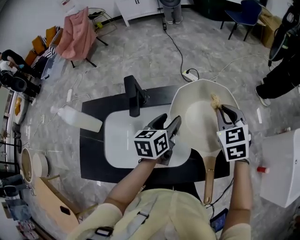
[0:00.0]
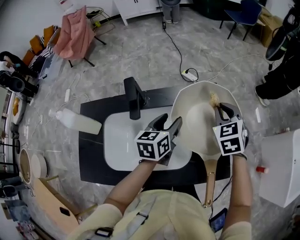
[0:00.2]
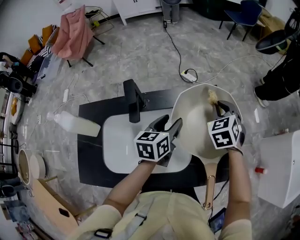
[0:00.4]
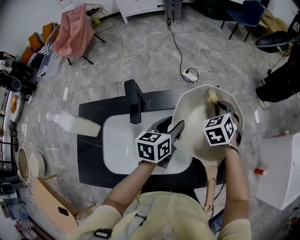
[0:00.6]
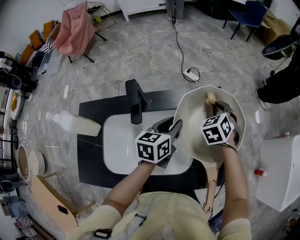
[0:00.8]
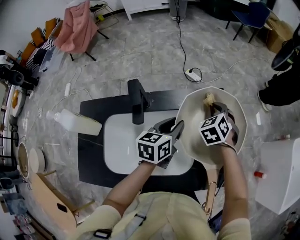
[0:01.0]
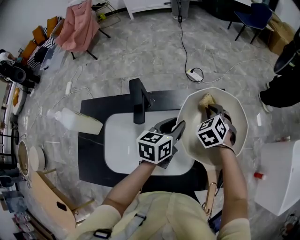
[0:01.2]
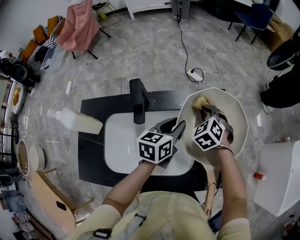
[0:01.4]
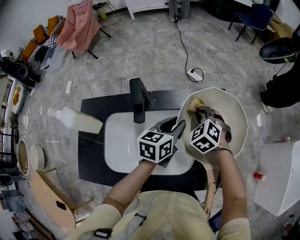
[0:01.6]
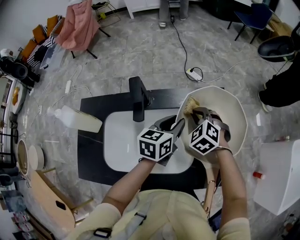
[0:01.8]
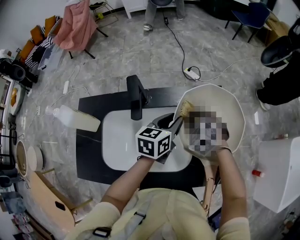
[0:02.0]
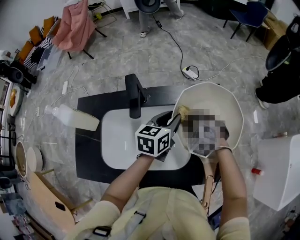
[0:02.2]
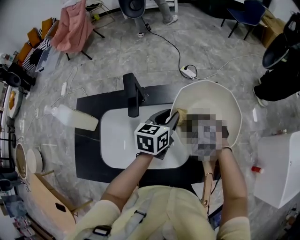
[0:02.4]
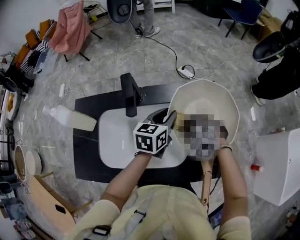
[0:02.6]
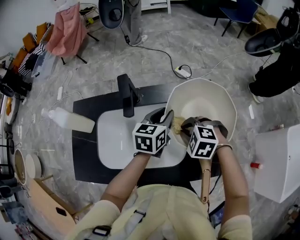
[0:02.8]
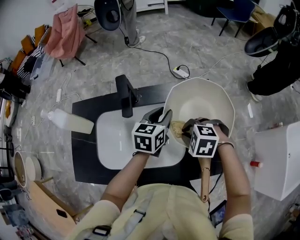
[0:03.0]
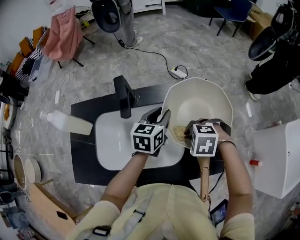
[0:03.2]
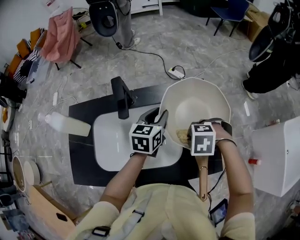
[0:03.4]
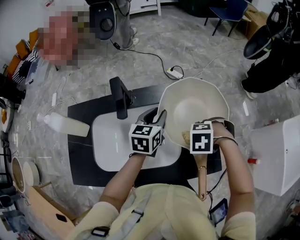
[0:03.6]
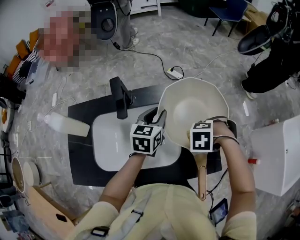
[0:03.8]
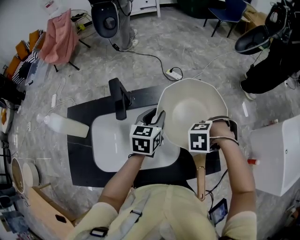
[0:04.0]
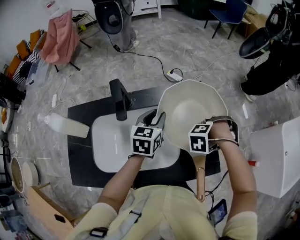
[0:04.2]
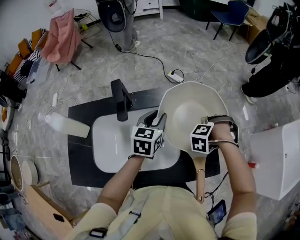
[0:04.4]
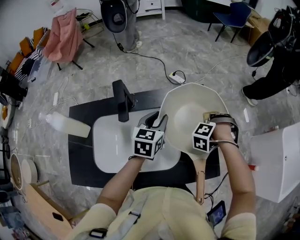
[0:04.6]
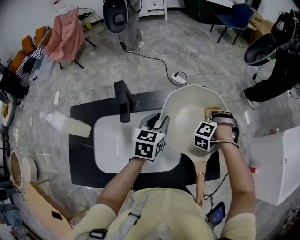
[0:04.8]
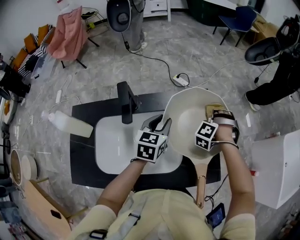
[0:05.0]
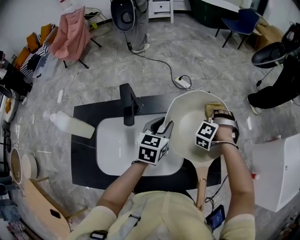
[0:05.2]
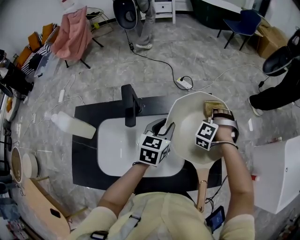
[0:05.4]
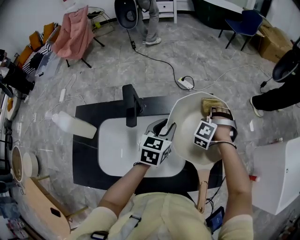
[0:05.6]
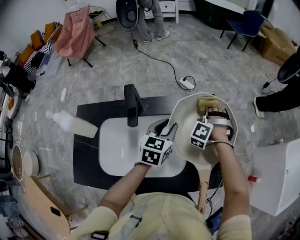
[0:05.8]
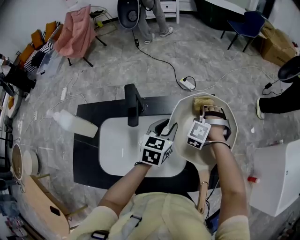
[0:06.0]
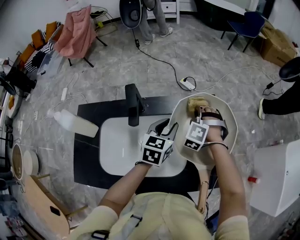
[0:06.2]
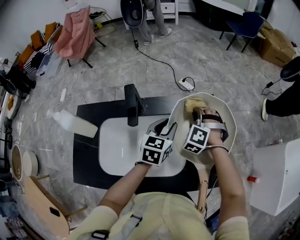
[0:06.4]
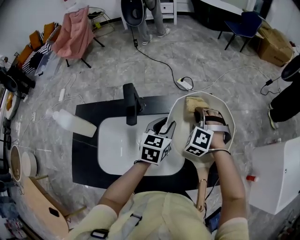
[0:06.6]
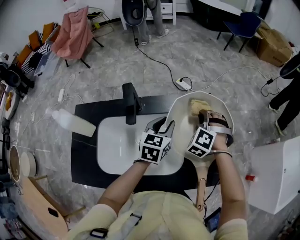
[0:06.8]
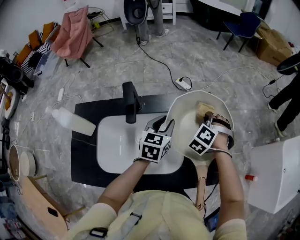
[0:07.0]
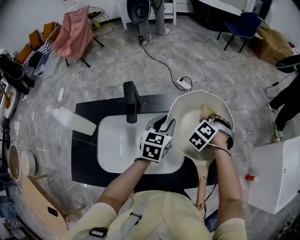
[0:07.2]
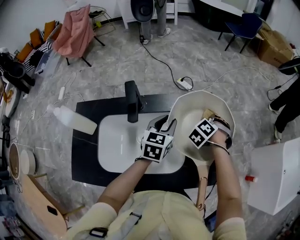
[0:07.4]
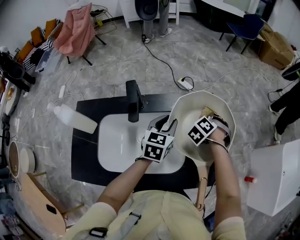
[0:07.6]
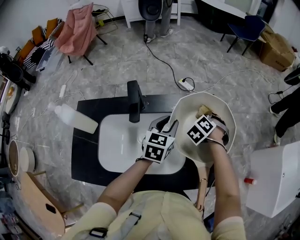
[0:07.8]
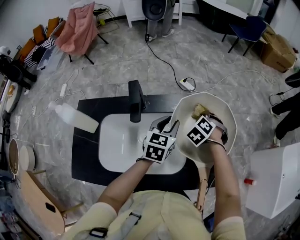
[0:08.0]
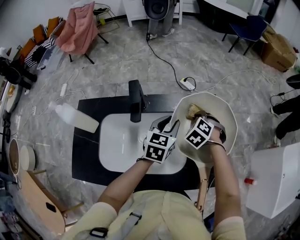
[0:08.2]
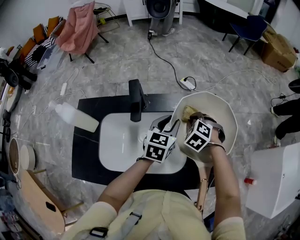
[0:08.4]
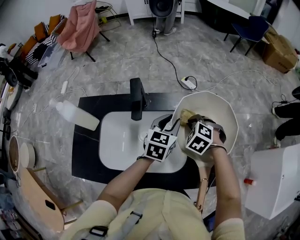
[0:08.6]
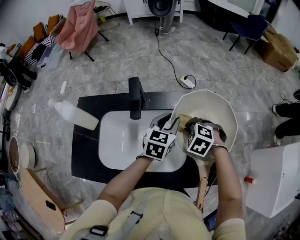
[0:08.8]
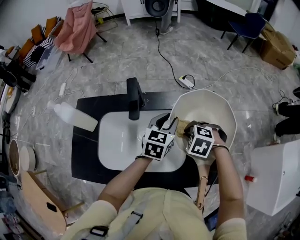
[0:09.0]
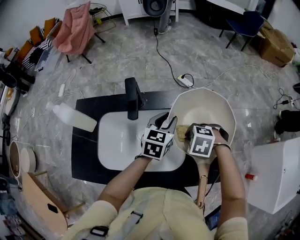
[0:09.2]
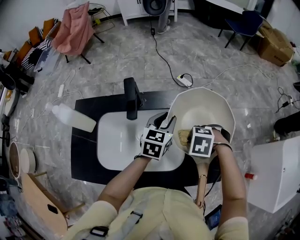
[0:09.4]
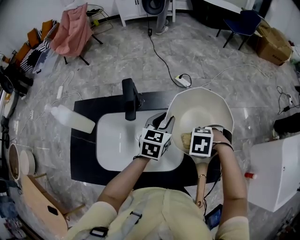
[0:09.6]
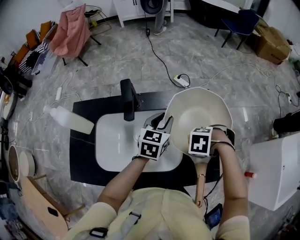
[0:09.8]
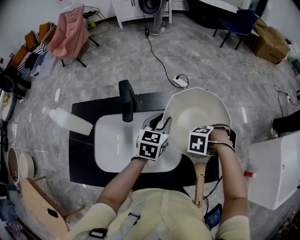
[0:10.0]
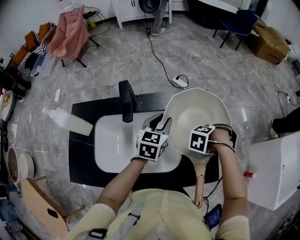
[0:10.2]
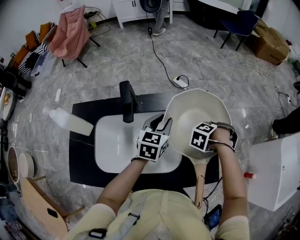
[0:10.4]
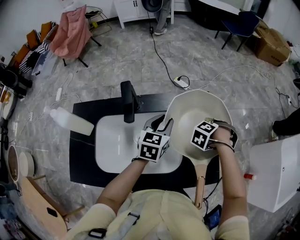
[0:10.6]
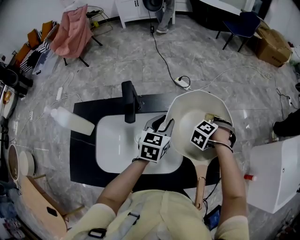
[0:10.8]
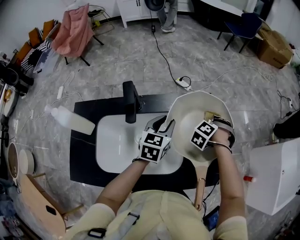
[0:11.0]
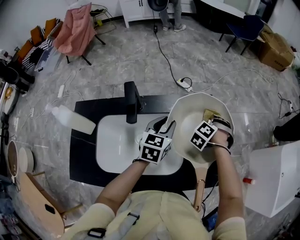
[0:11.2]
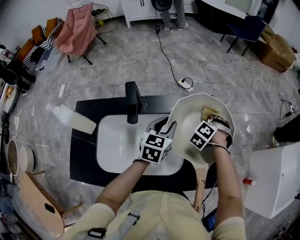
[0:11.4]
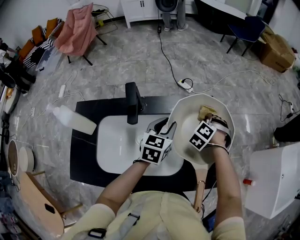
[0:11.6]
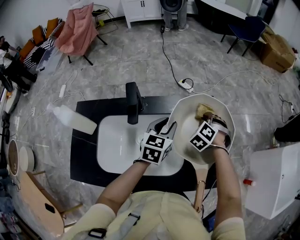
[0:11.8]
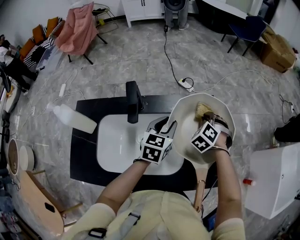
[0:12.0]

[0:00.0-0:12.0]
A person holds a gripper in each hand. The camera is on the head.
0:00.0 to 0:01.6: The right gripper travels to the left and downward by some 15 cm, and swivels approximately 30 degrees. Meanwhile the left gripper closes.
0:01.6 to 0:03.0: The right gripper shifts by approximately 15 cm, and rotates approximately 40 degrees.
0:03.0 to 0:04.4: The right gripper shifts by about 15 cm, and rotates some 50 degrees.
0:04.4 to 0:06.0: The right gripper shifts by approximately 15 cm, and rotates some 40 degrees.
0:06.0 to 0:07.6: The right gripper shifts about 5 cm to the right, and swivels about 30 degrees.
0:07.6 to 0:09.0: The right gripper changes place by about 15 cm, and changes its angle by roughly 40 degrees.
0:09.0 to 0:10.4: The right gripper shifts by about 15 cm, and changes its angle by some 40 degrees.
0:10.4 to 0:12.0: The right gripper changes place by some 10 cm, and turns by some 40 degrees.

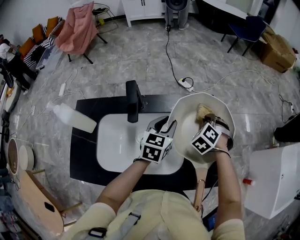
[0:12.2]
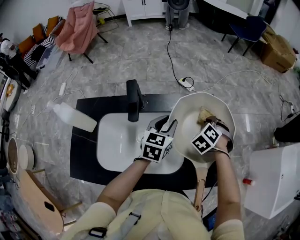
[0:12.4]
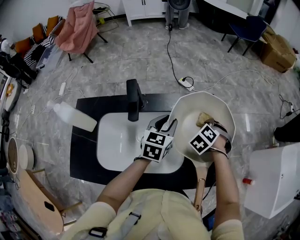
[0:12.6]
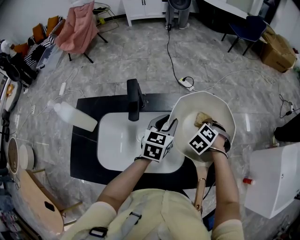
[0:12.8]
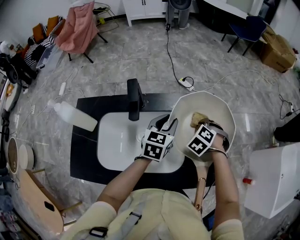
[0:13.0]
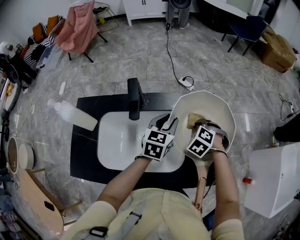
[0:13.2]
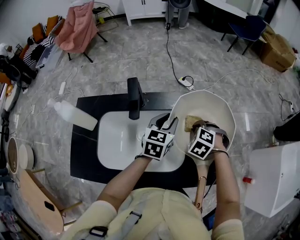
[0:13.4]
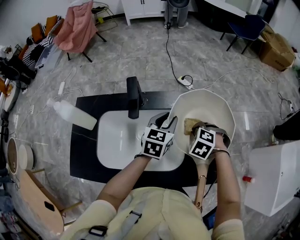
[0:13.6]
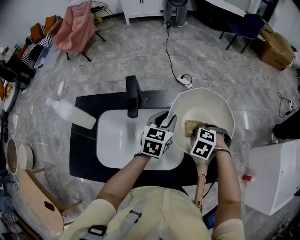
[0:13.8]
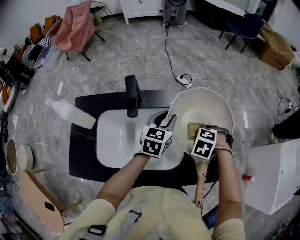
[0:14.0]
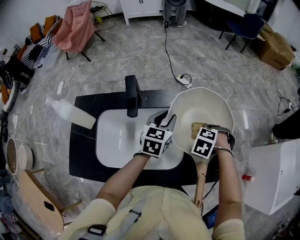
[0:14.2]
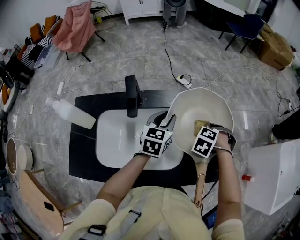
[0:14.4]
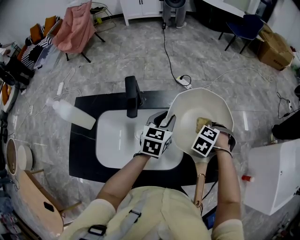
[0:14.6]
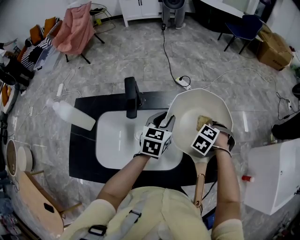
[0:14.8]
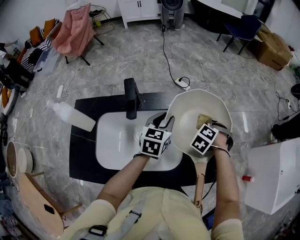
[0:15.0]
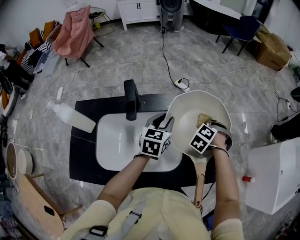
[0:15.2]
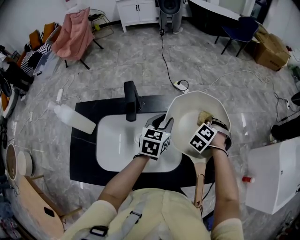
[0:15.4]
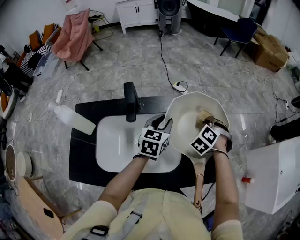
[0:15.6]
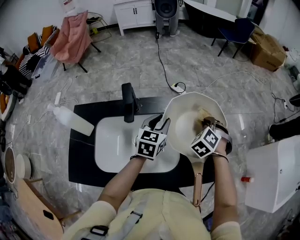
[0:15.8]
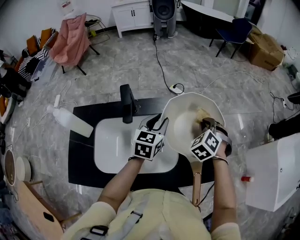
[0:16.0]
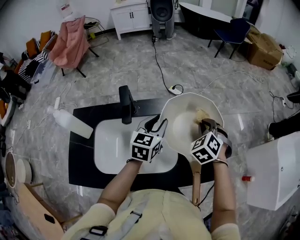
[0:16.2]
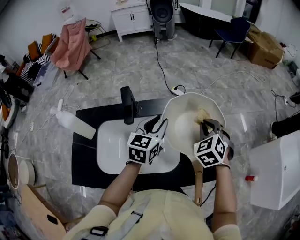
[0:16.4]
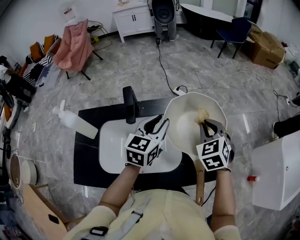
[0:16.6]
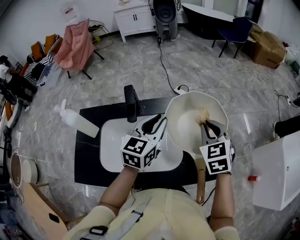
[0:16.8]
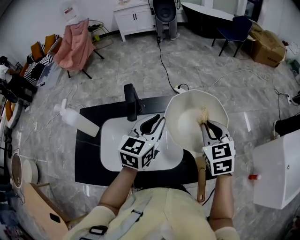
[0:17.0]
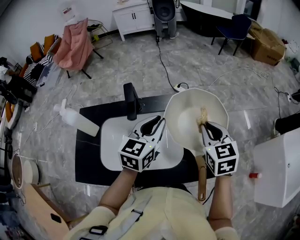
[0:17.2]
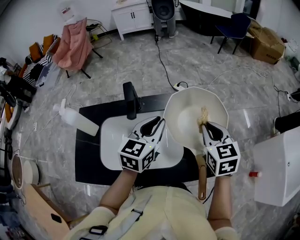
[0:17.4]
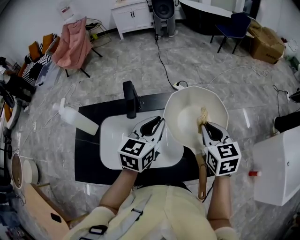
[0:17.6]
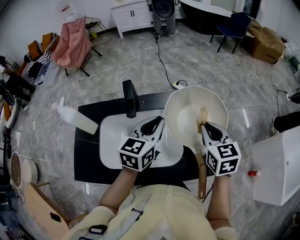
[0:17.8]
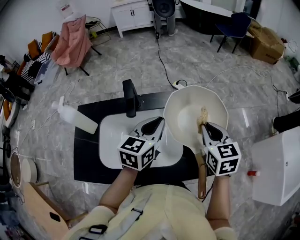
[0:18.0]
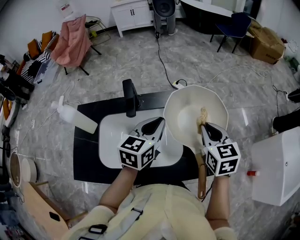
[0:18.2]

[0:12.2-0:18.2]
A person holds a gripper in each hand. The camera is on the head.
0:12.2 to 0:13.8: The right gripper ends up roughly 10 cm from where it was, and swivels about 30 degrees.
0:13.8 to 0:15.2: The right gripper moves about 10 cm, and turns by approximately 20 degrees.
0:15.2 to 0:16.6: The right gripper is displaced upward by roughly 15 cm, and changes its angle by some 50 degrees. The left gripper is displaced upward by roughly 10 cm.
0:16.6 to 0:18.2: The left gripper closes its fingers; the right gripper turns by roughly 30 degrees.

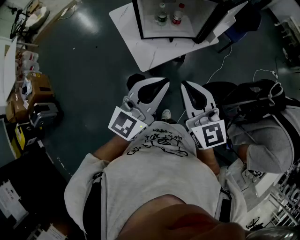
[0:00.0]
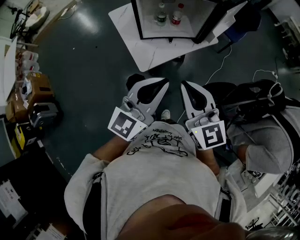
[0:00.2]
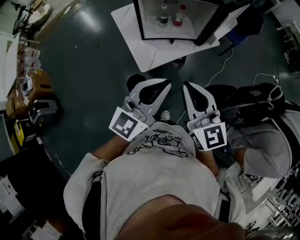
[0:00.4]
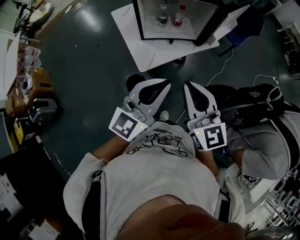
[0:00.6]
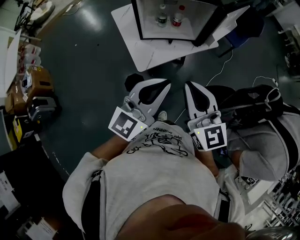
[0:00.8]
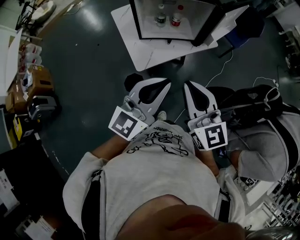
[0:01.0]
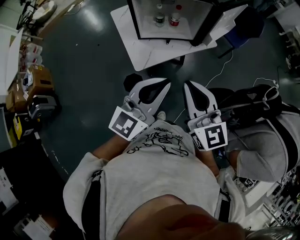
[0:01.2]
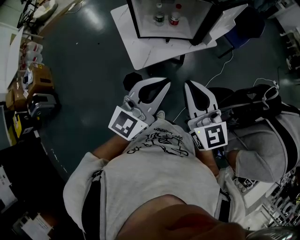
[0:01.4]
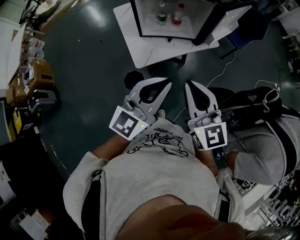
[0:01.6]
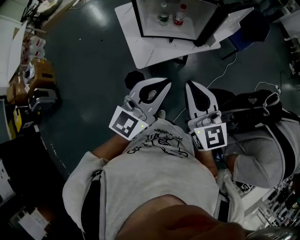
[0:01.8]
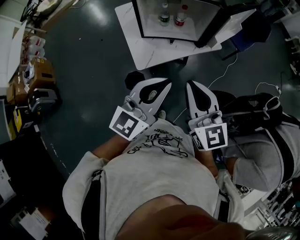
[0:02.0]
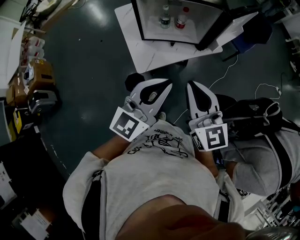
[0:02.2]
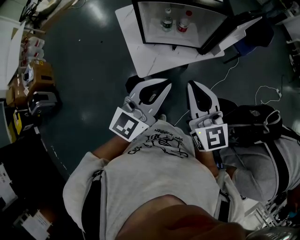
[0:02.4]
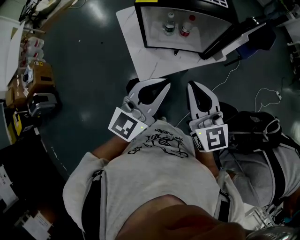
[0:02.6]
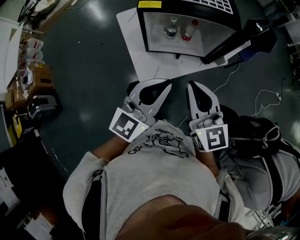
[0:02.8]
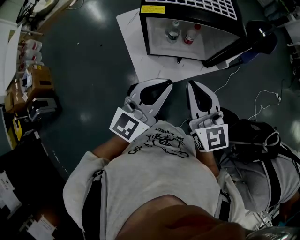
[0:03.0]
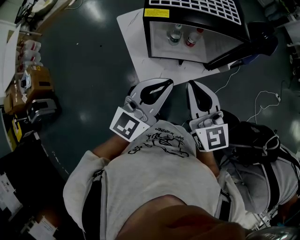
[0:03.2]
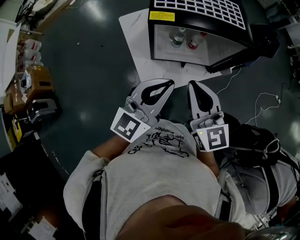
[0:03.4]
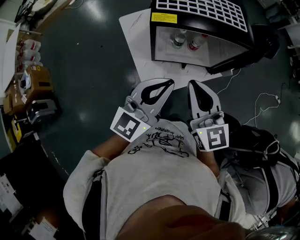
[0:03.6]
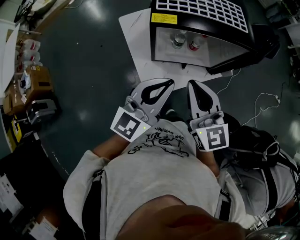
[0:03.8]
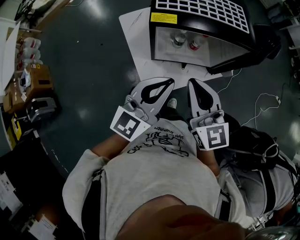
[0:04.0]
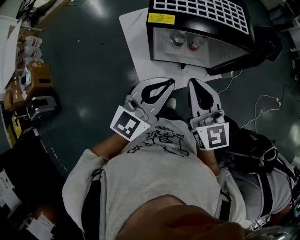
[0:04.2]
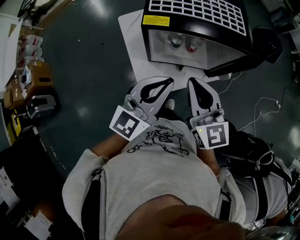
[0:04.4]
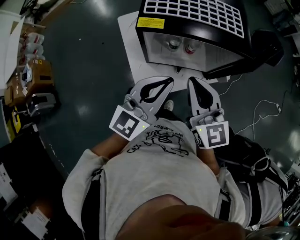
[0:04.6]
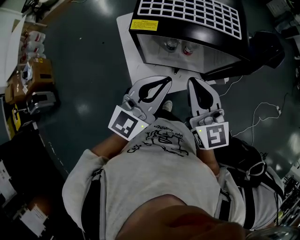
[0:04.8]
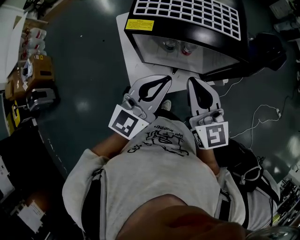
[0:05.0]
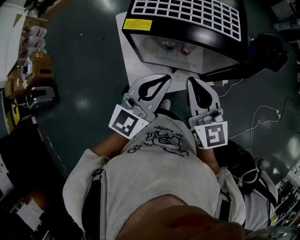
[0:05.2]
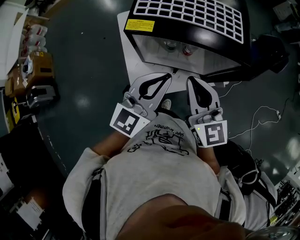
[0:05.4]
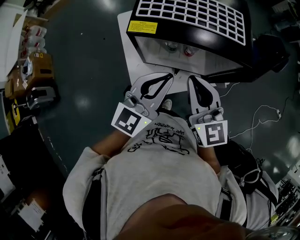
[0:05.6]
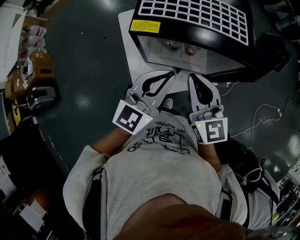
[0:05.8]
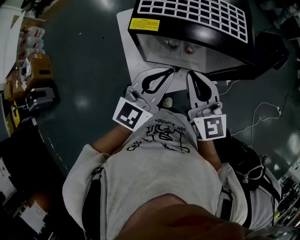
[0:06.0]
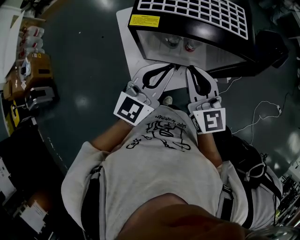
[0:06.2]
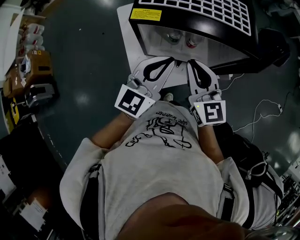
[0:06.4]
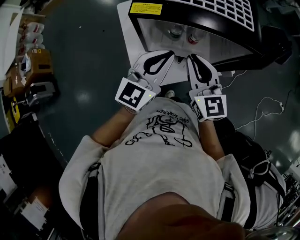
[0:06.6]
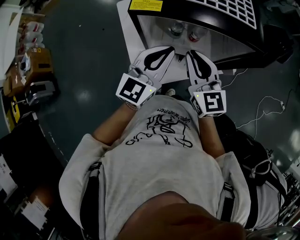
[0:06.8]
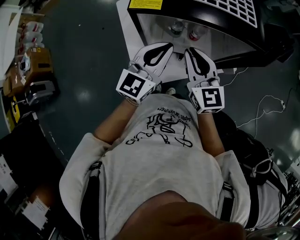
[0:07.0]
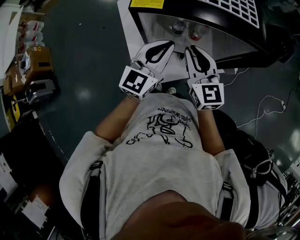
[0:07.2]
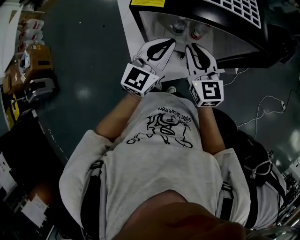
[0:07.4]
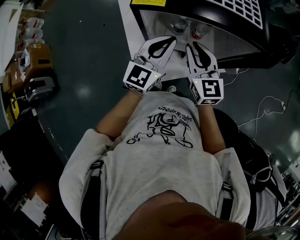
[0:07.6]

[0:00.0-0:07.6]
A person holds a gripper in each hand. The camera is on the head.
0:00.0 to 0:01.6: The grippers both shift to the right by some 5 cm.
0:01.6 to 0:03.0: Both grippers travel together forward and to the left, roughly 20 cm.
0:03.0 to 0:04.6: Both grippers travel together forward, about 10 cm.
0:04.6 to 0:06.0: The right gripper changes place by approximately 5 cm. Meanwhile the left gripper is displaced forward by some 5 cm.
0:06.0 to 0:07.6: Both grippers move downward and forward, approximately 10 cm.
